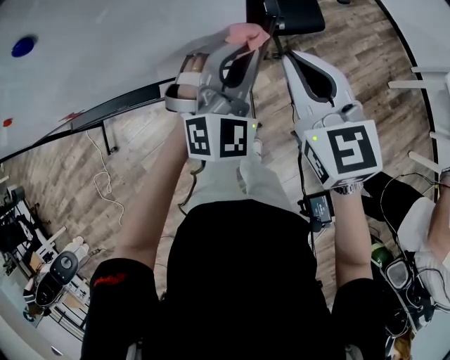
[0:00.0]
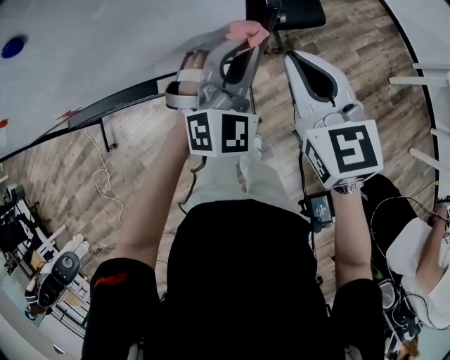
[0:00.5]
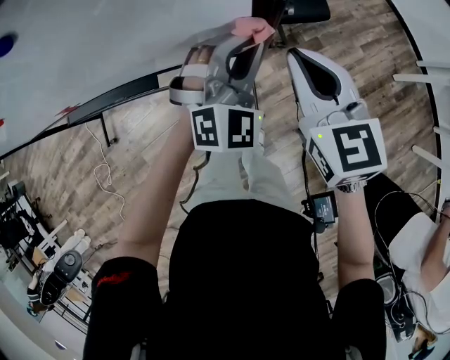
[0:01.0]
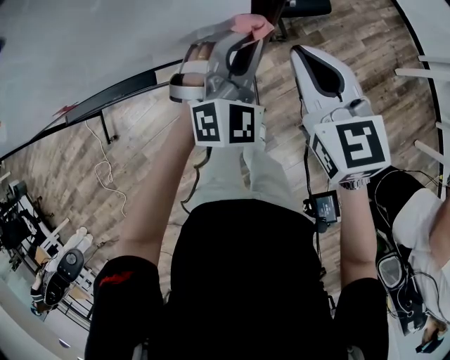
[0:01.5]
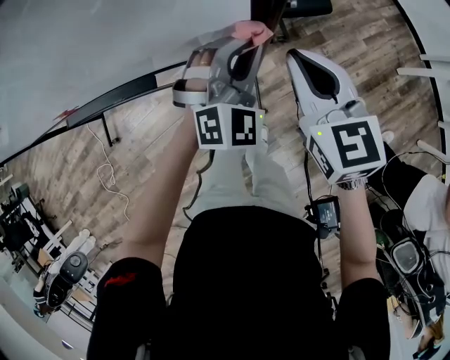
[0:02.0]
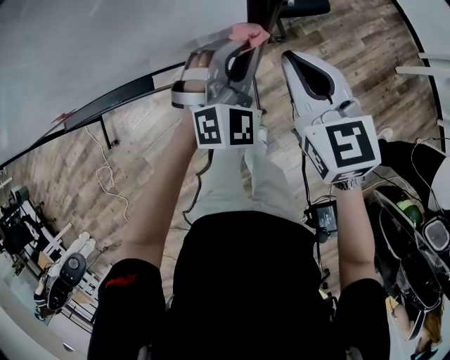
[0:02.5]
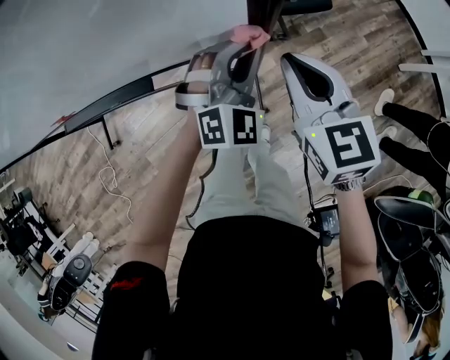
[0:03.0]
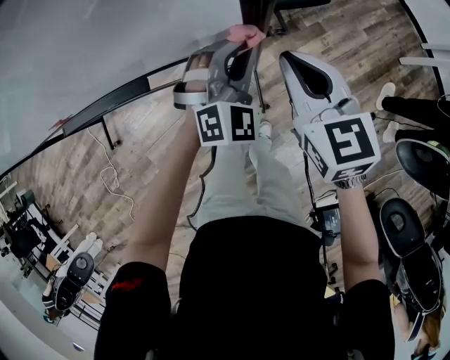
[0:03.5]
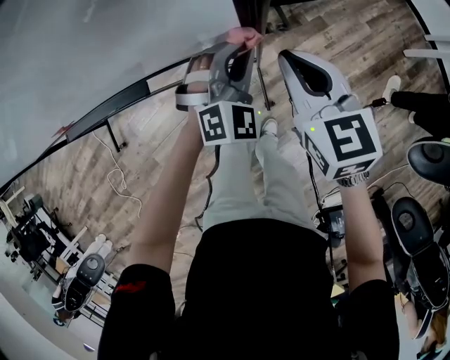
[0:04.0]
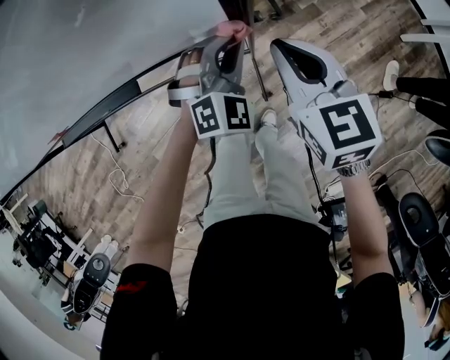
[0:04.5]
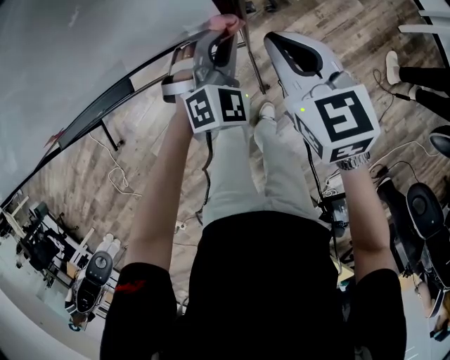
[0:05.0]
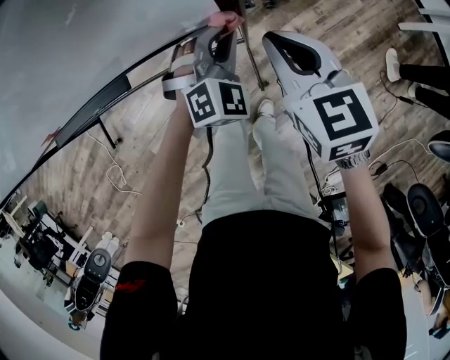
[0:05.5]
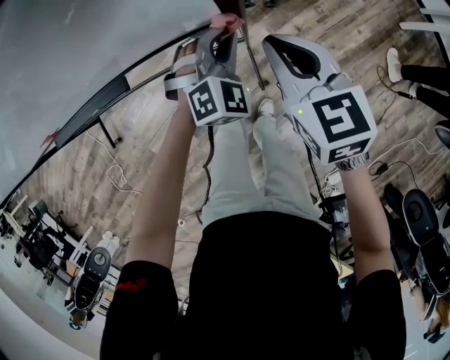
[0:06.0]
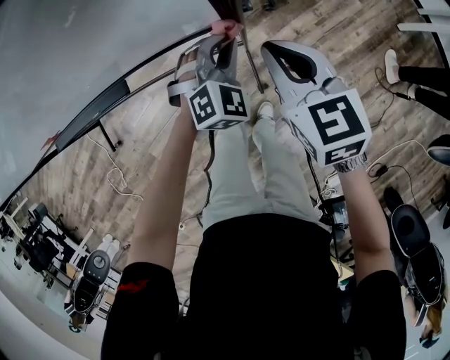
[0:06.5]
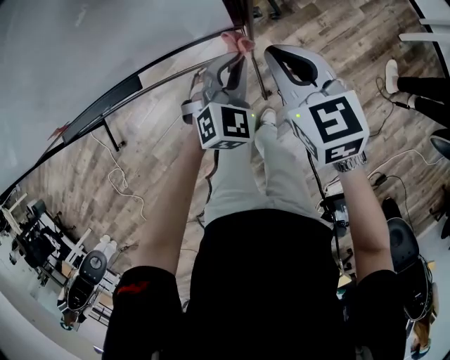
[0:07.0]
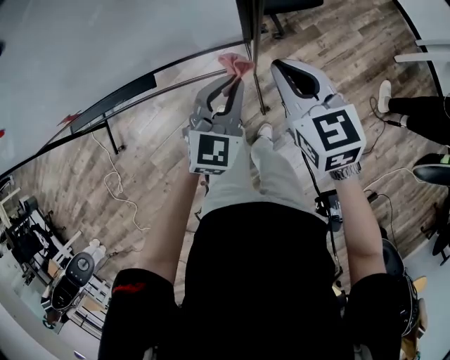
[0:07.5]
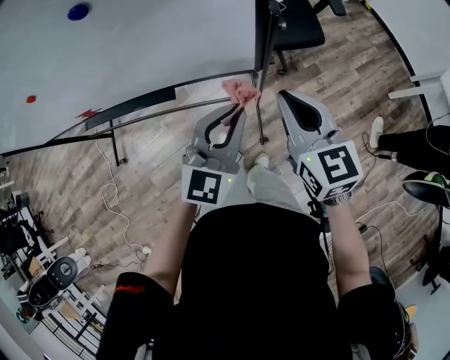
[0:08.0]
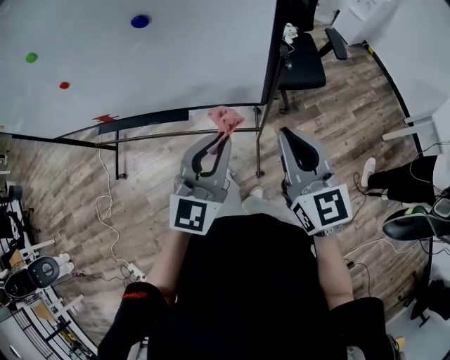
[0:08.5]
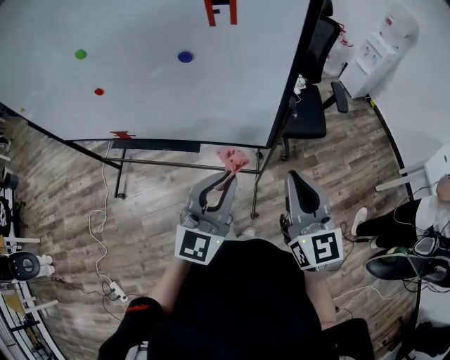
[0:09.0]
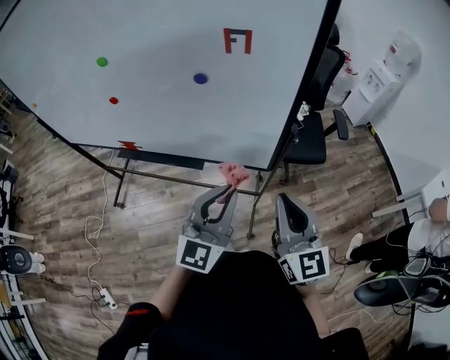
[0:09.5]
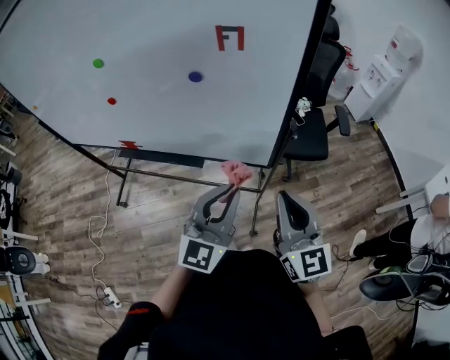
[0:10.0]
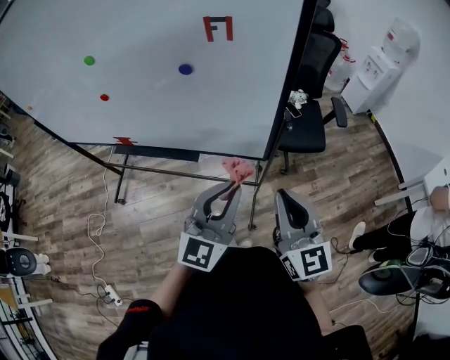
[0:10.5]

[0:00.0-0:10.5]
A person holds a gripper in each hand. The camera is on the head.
0:00.0 to 0:02.0: Both grippers travel together downward, about 10 cm.
0:02.0 to 0:04.0: Both grippers travel together downward, roughly 10 cm.
0:04.0 to 0:06.5: The left gripper heads downward, covering about 10 cm; the right gripper goes approximately 5 cm downward.
0:06.5 to 0:08.5: Both grippers move upward and backward, roughly 30 cm. The right gripper swivels roughly 30 degrees. Meanwhile the left gripper points its fingers approximately 30 degrees further upward.
0:08.5 to 0:10.5: The right gripper shifts by some 5 cm. The left gripper shifts approximately 5 cm upward.

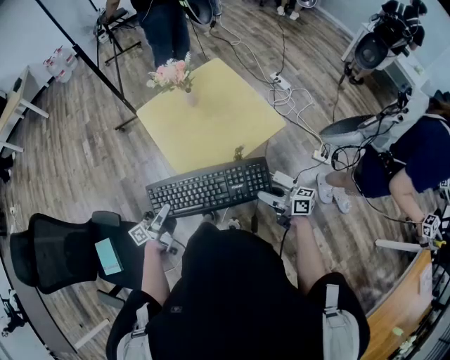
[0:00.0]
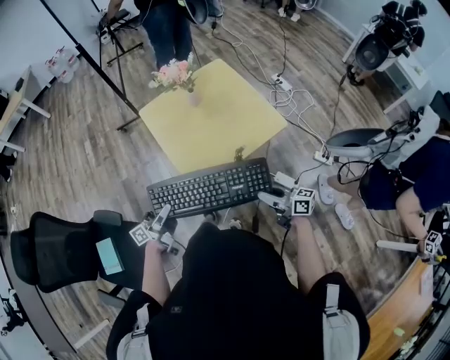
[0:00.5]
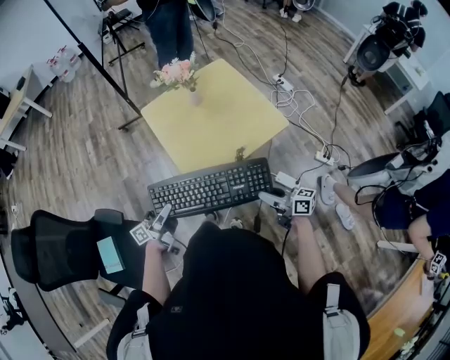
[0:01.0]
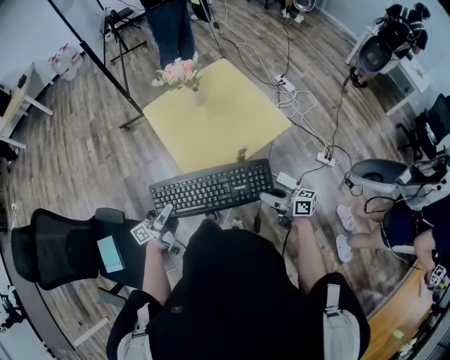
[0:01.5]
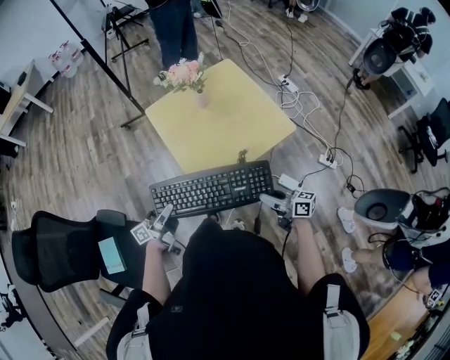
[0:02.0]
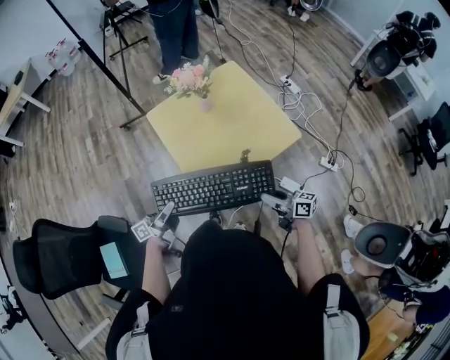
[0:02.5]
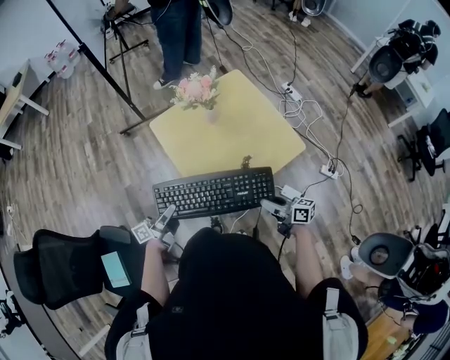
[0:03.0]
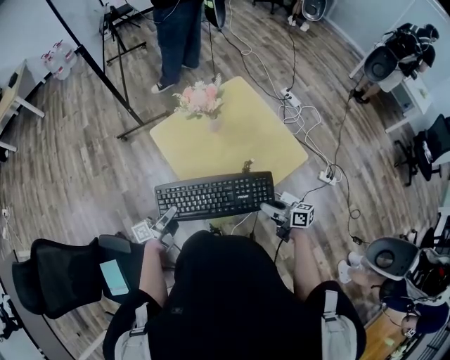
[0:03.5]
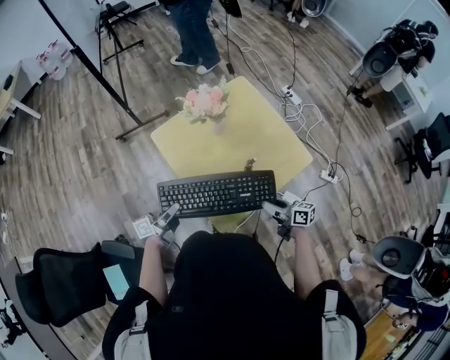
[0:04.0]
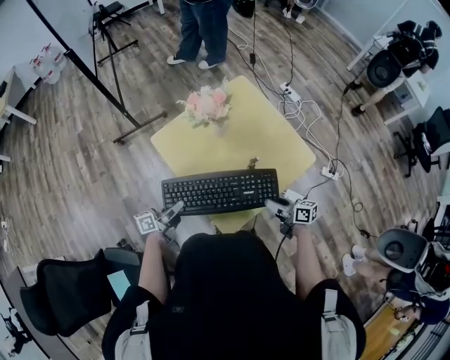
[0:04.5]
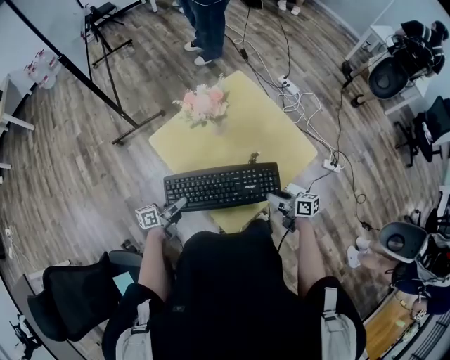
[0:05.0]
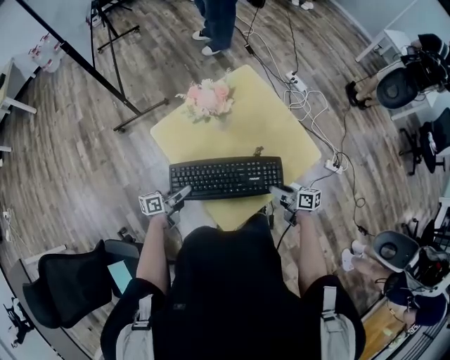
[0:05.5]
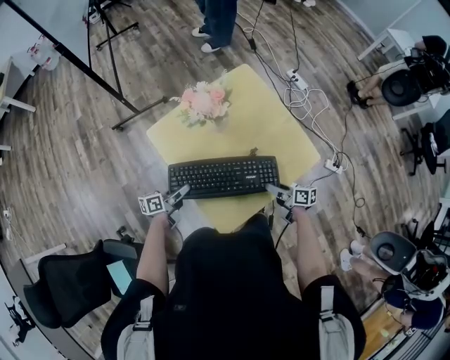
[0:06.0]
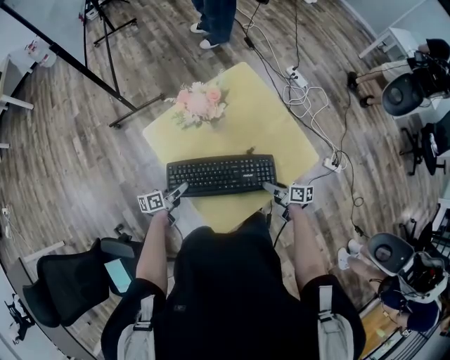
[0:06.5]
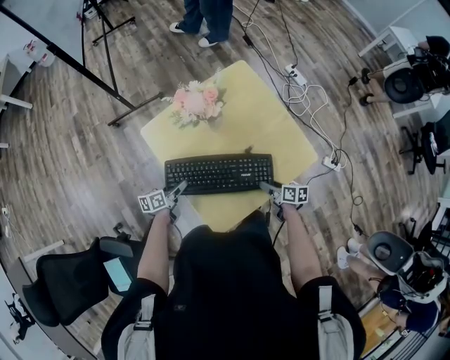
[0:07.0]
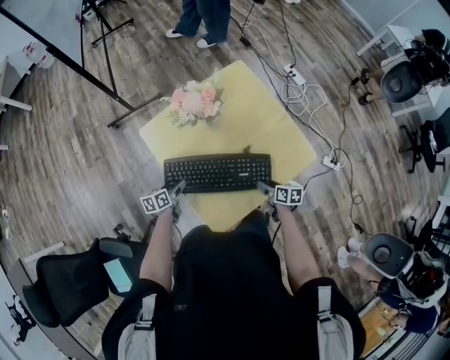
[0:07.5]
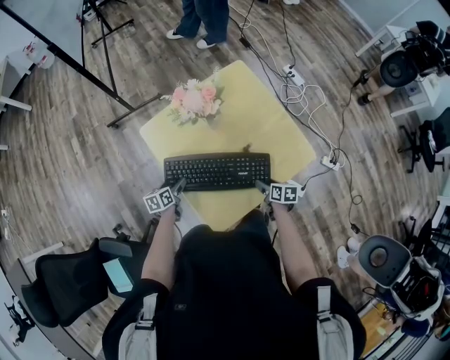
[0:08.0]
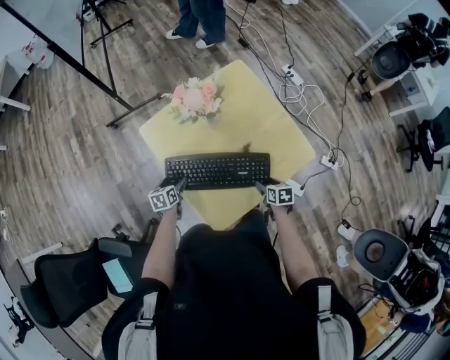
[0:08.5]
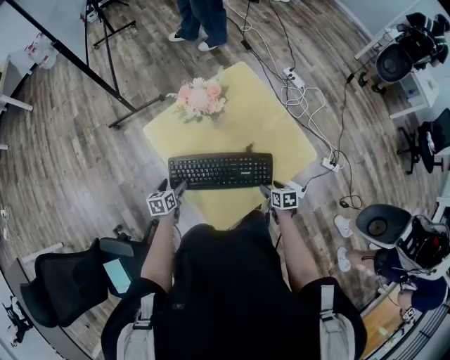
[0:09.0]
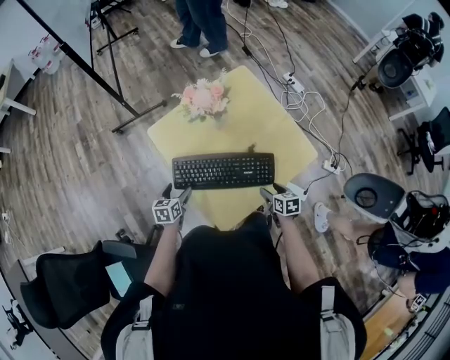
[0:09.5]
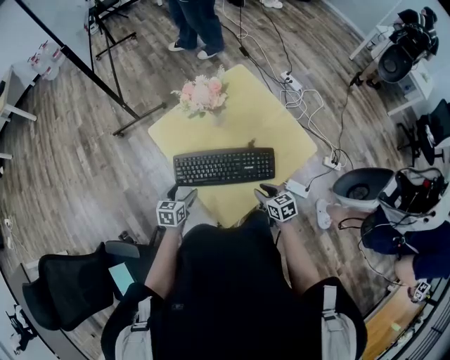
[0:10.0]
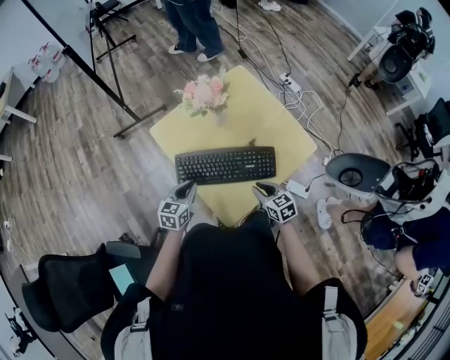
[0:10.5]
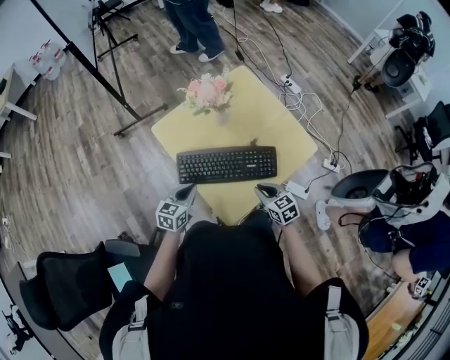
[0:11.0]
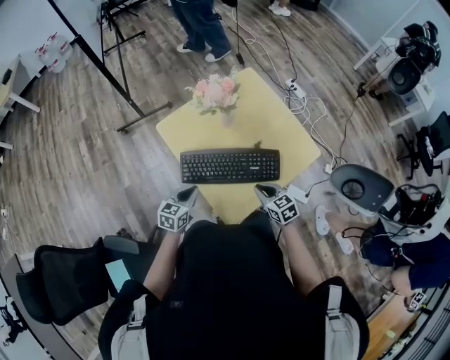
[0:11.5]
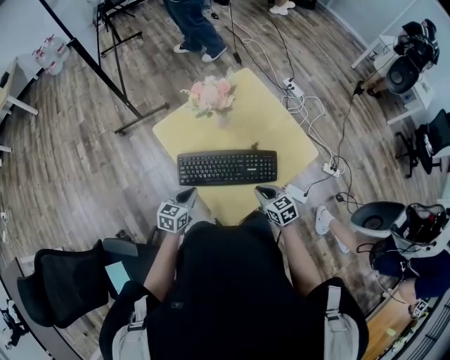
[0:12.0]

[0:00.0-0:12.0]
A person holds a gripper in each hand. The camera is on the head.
0:00.0 to 0:02.0: The grippers stay close to where they were, moving slightly.
0:02.0 to 0:04.0: The two grippers go approximately 20 cm forward.
0:04.0 to 0:06.0: The grippers both shift forward and downward by about 15 cm. The left gripper changes its angle by about 20 degrees.
0:06.0 to 0:08.0: Both grippers travel together downward, approximately 5 cm. The left gripper changes its angle by about 30 degrees, and opens; the right gripper swivels some 30 degrees.
0:08.0 to 0:10.0: The right gripper heads to the left, backward and upward, covering approximately 10 cm, rotates some 30 degrees, and closes up. The left gripper goes roughly 10 cm backward and upward, and swivels about 30 degrees.
0:10.0 to 0:12.0: The left gripper changes place by some 5 cm, and closes its fingers. The right gripper moves some 5 cm, and closes.

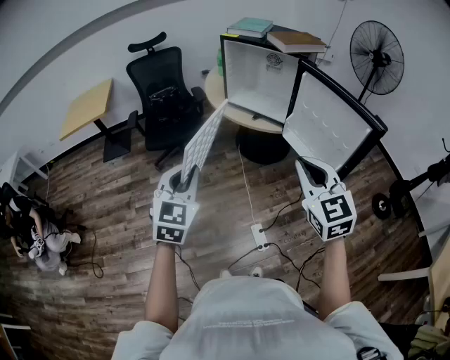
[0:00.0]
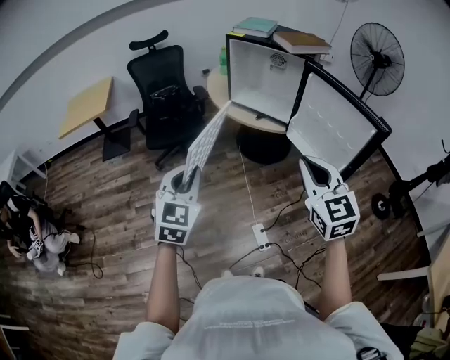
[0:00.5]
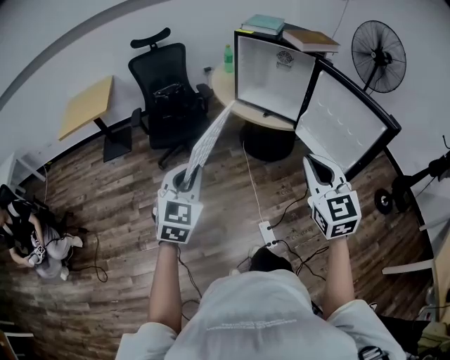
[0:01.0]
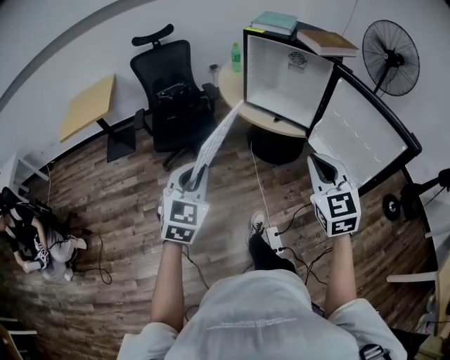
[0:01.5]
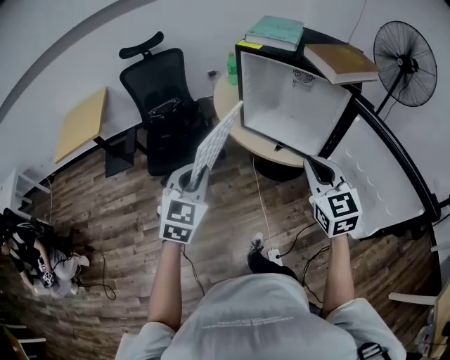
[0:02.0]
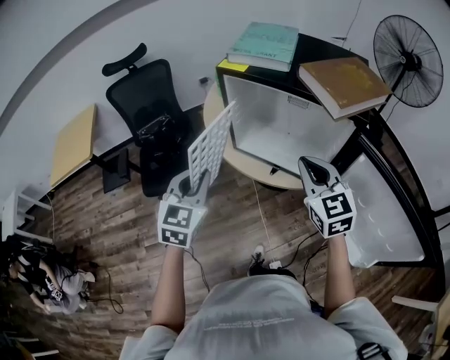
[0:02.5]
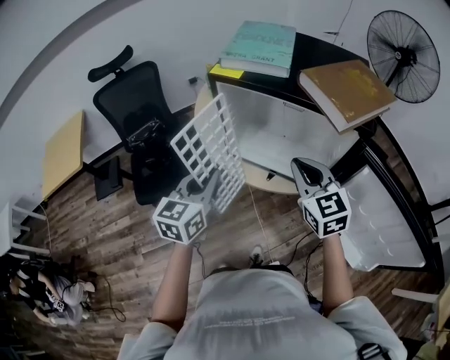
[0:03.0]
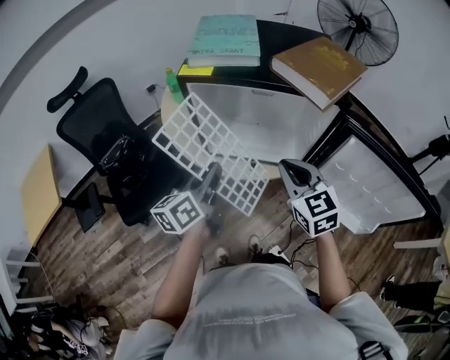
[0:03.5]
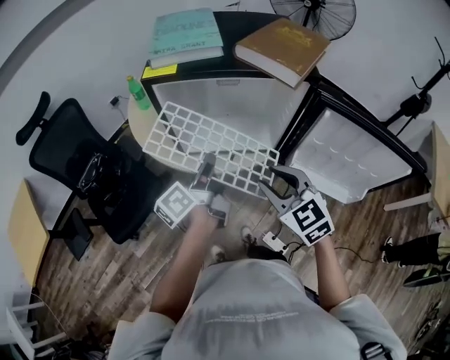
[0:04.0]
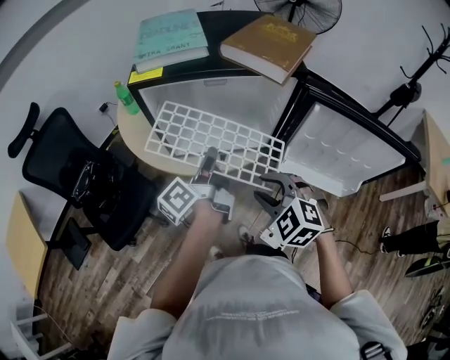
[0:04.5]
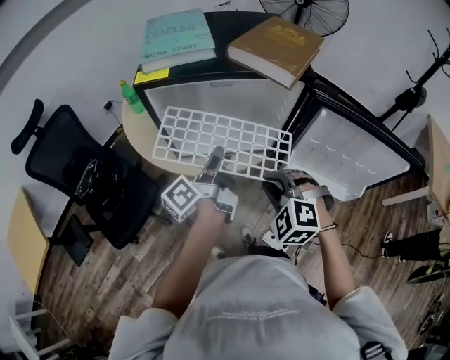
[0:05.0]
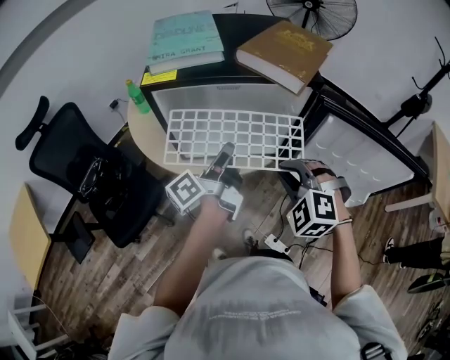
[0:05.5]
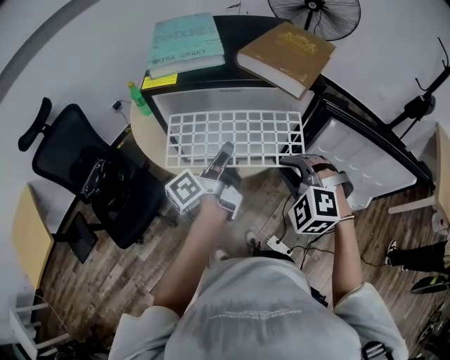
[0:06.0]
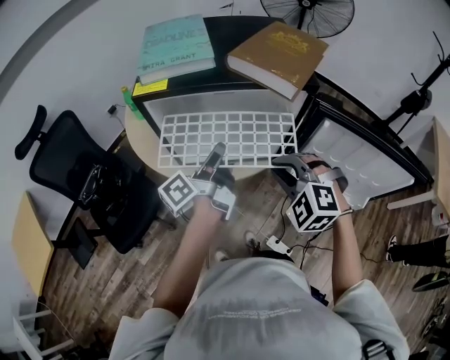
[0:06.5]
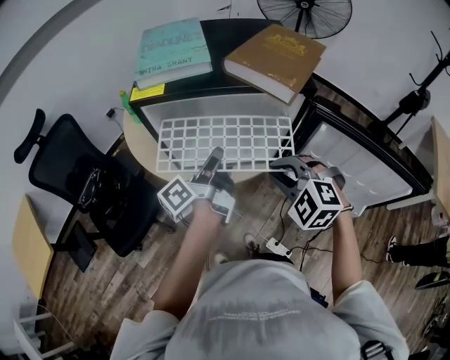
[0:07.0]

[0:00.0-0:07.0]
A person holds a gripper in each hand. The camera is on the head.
0:00.0 to 0:02.0: The two grippers go some 30 cm forward.
0:02.0 to 0:03.5: The left gripper moves forward, some 20 cm, and rolls counterclockwise, seen from behind, by some 60 degrees. The right gripper heads forward, covering approximately 15 cm.
0:03.5 to 0:05.0: The left gripper travels to the right by approximately 10 cm, and swivels approximately 40 degrees; the right gripper travels backward and downward by roughly 10 cm, rolls counterclockwise, seen from behind, by some 40 degrees, and opens and closes again.
0:05.0 to 0:07.0: The right gripper is displaced forward by roughly 5 cm.
